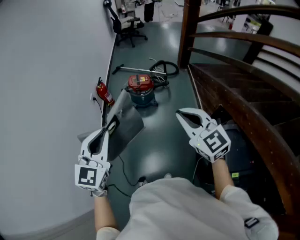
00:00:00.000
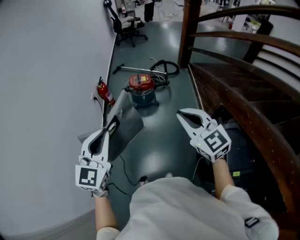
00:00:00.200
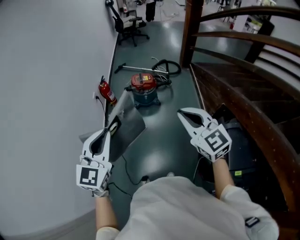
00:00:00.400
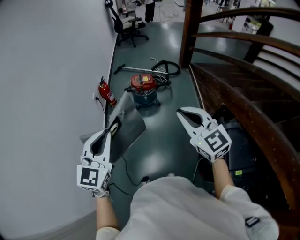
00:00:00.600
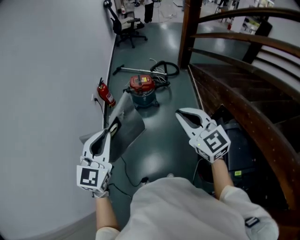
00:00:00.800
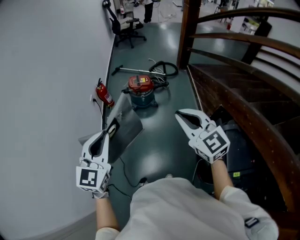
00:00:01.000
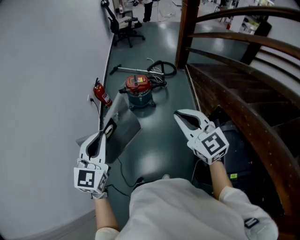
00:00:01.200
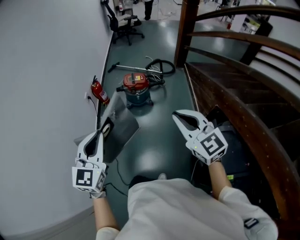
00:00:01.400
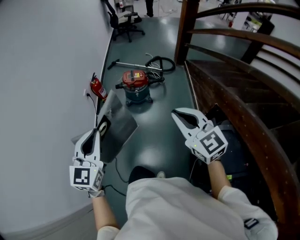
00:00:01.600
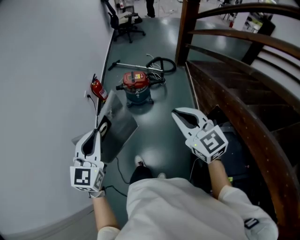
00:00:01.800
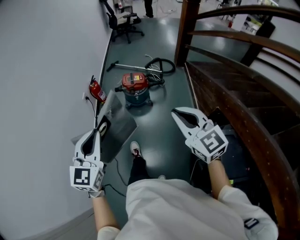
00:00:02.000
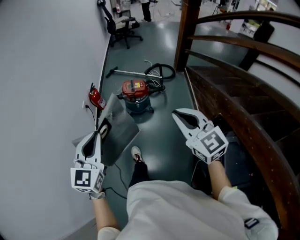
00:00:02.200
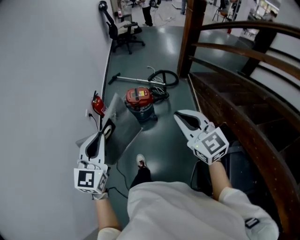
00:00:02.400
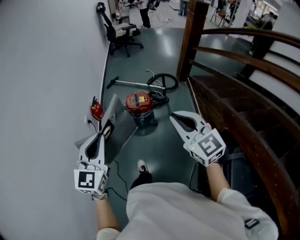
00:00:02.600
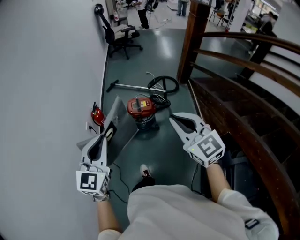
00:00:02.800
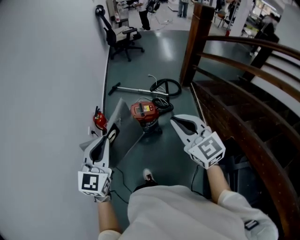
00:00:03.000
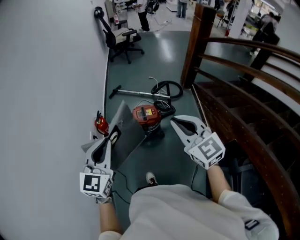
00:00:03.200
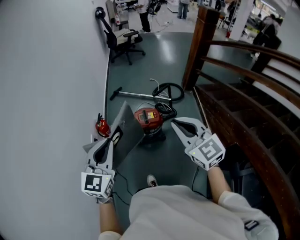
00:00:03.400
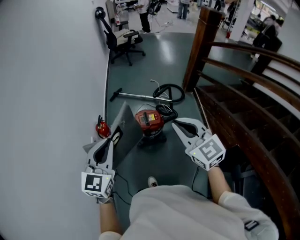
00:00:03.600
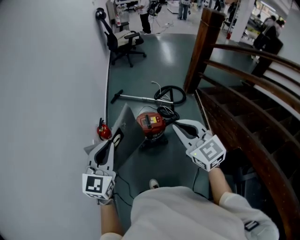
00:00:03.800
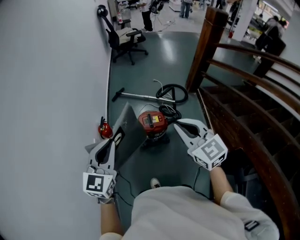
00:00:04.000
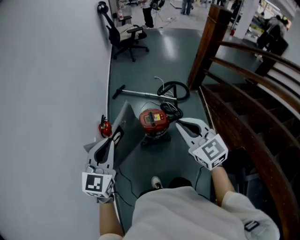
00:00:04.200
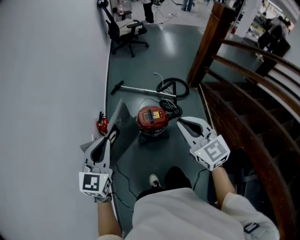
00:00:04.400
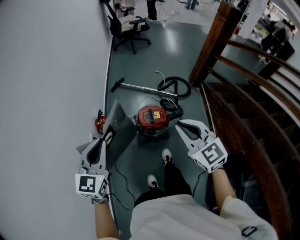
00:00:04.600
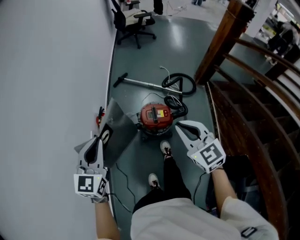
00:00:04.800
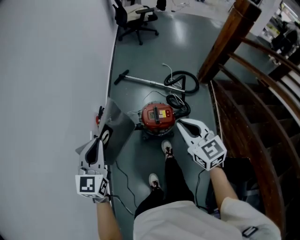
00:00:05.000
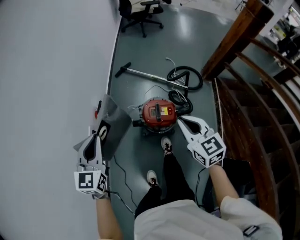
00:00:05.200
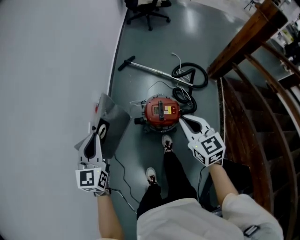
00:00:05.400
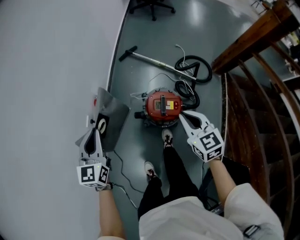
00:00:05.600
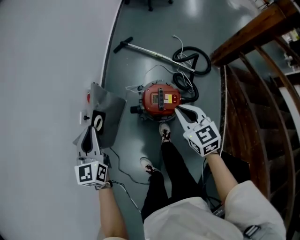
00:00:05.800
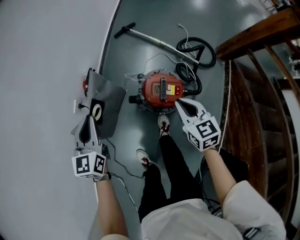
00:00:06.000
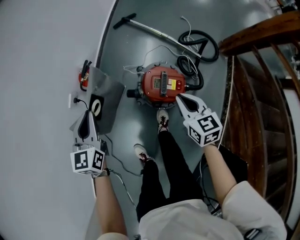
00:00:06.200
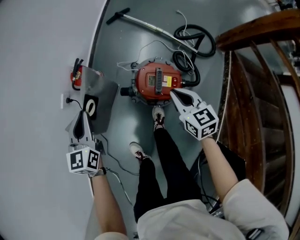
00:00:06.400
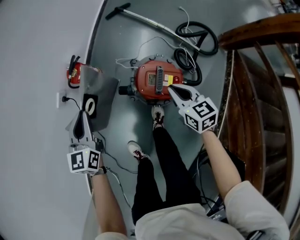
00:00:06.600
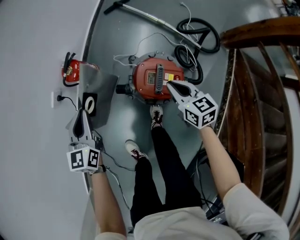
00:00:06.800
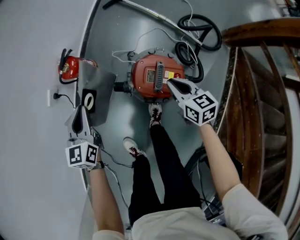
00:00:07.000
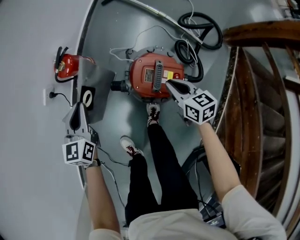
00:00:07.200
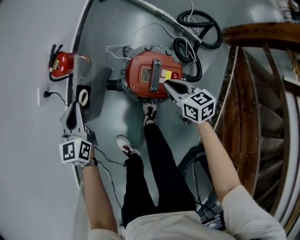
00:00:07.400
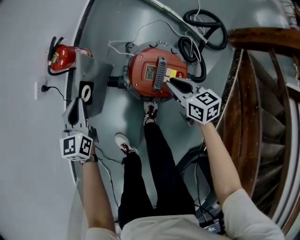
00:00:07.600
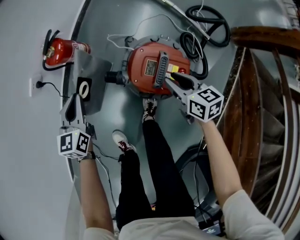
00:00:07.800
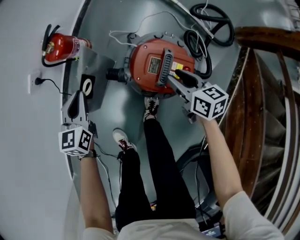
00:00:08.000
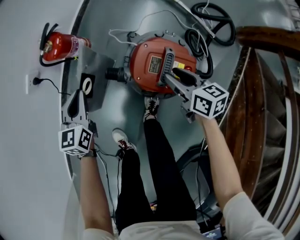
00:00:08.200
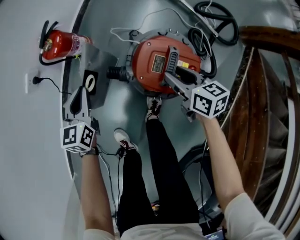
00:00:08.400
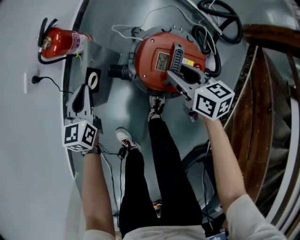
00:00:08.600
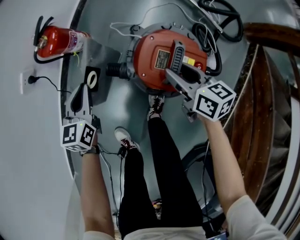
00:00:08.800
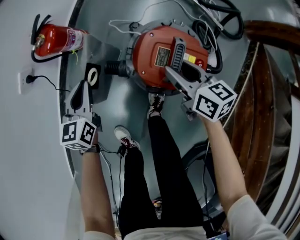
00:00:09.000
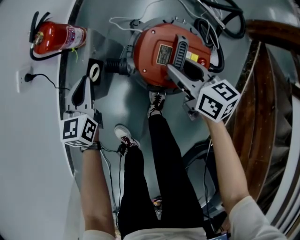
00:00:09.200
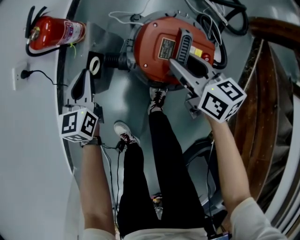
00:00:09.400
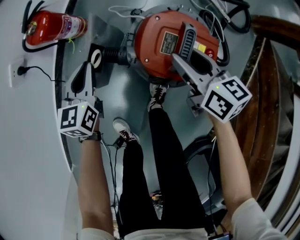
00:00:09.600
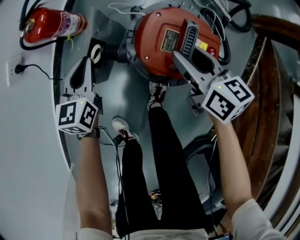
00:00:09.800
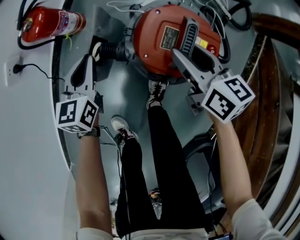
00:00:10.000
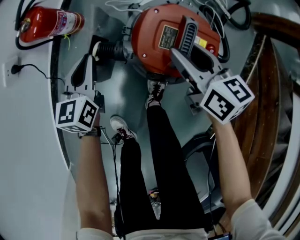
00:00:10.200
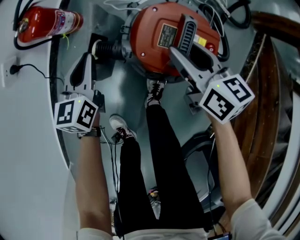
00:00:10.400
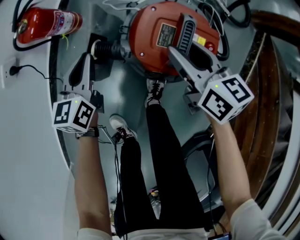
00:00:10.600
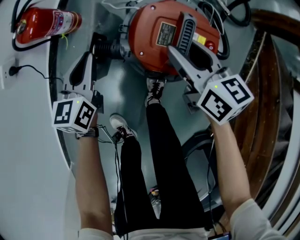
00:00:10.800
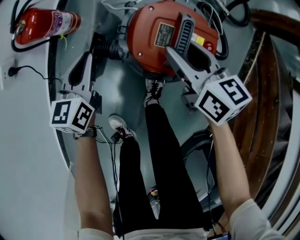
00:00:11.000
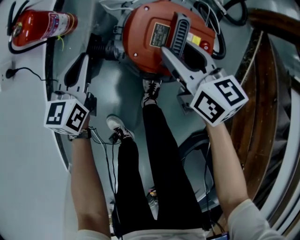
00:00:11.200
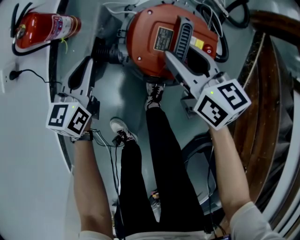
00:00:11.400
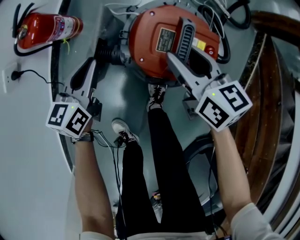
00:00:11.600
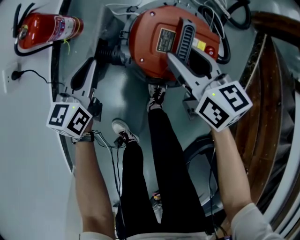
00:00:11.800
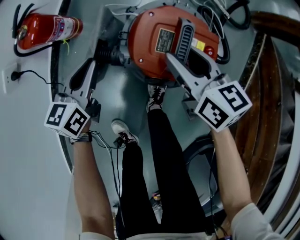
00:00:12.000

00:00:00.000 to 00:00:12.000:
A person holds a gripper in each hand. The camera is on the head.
00:00:00.000 to 00:00:01.600: The grippers make only small movements.
00:00:01.600 to 00:00:03.000: Both grippers move forward, about 35 cm.
00:00:03.000 to 00:00:04.400: The left gripper shifts approximately 20 cm forward and to the left. Meanwhile the right gripper travels forward by about 15 cm.
00:00:04.400 to 00:00:06.000: Both grippers move downward and forward, about 40 cm. The right gripper swivels some 30 degrees. Meanwhile the left gripper swivels approximately 30 degrees.
00:00:06.000 to 00:00:07.600: Both grippers travel together downward, approximately 25 cm. The right gripper turns by roughly 30 degrees.
00:00:07.600 to 00:00:09.000: The left gripper goes roughly 10 cm downward; the right gripper ends up some 5 cm from where it was, and opens its fingers.
00:00:09.000 to 00:00:10.400: The left gripper ends up roughly 5 cm from where it was.
00:00:10.400 to 00:00:12.000: There are only small adjustments of the grippers.

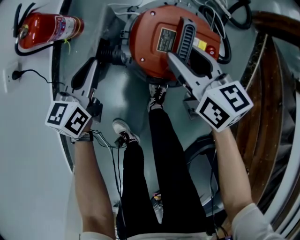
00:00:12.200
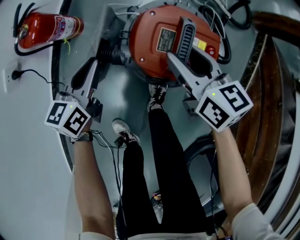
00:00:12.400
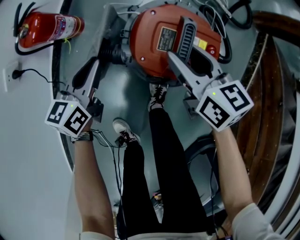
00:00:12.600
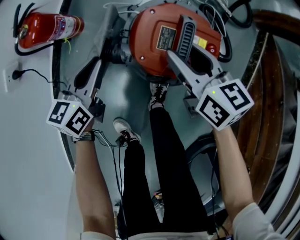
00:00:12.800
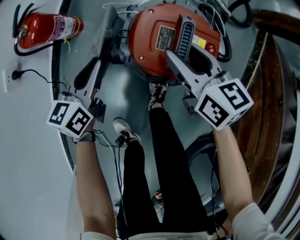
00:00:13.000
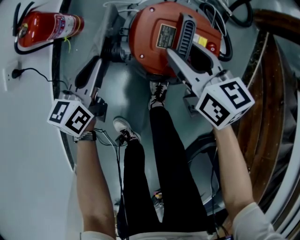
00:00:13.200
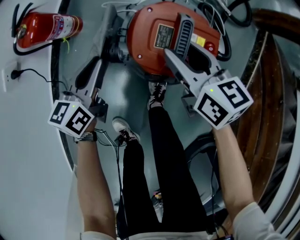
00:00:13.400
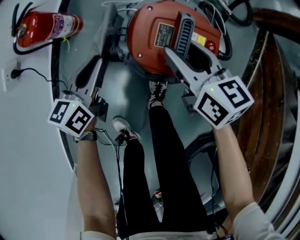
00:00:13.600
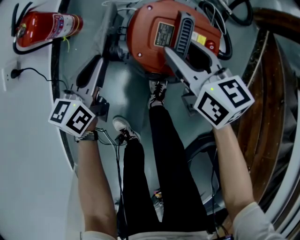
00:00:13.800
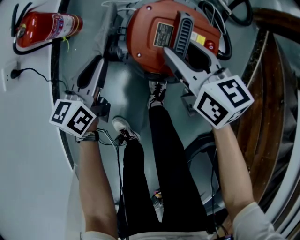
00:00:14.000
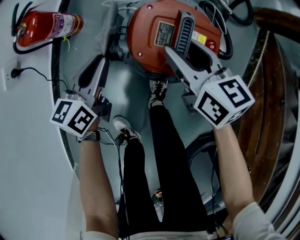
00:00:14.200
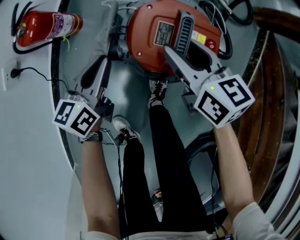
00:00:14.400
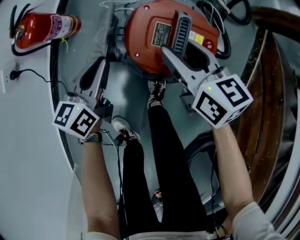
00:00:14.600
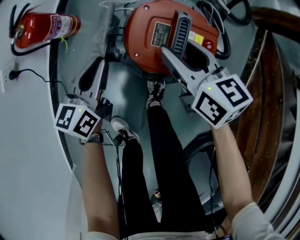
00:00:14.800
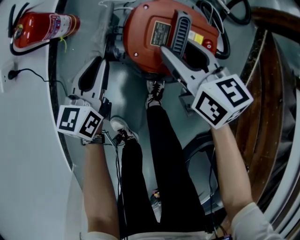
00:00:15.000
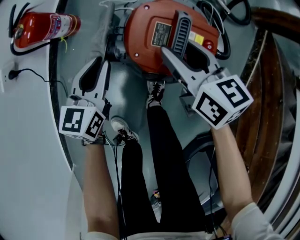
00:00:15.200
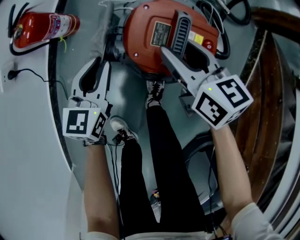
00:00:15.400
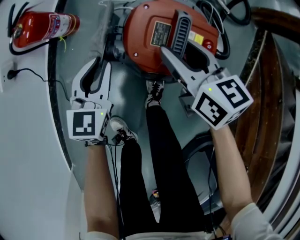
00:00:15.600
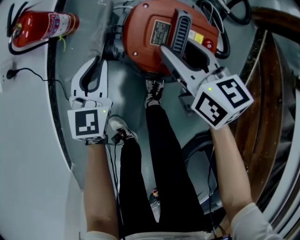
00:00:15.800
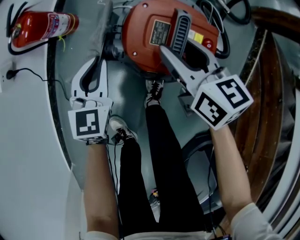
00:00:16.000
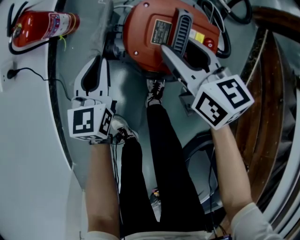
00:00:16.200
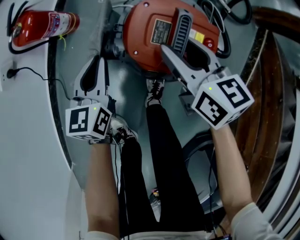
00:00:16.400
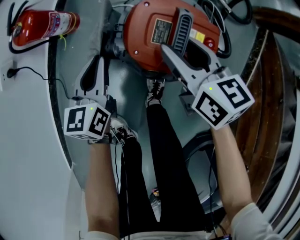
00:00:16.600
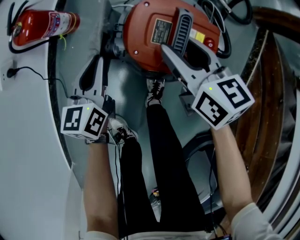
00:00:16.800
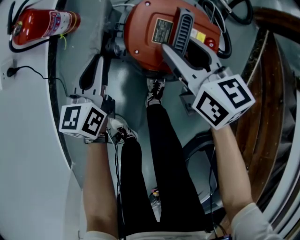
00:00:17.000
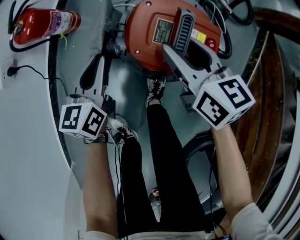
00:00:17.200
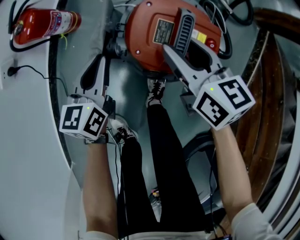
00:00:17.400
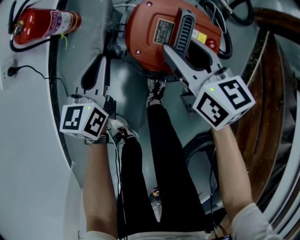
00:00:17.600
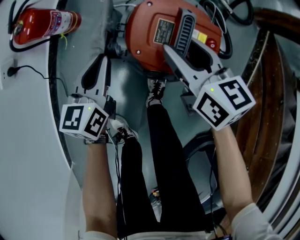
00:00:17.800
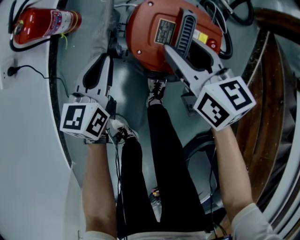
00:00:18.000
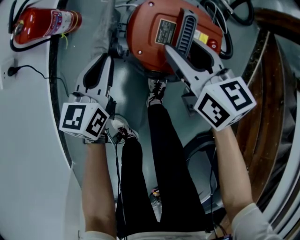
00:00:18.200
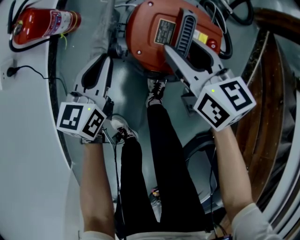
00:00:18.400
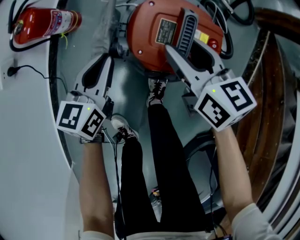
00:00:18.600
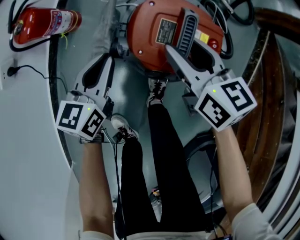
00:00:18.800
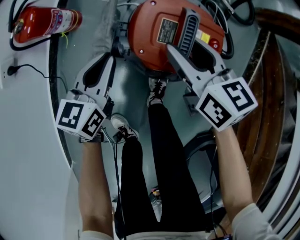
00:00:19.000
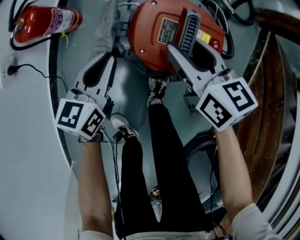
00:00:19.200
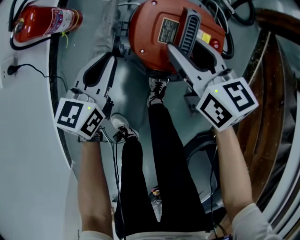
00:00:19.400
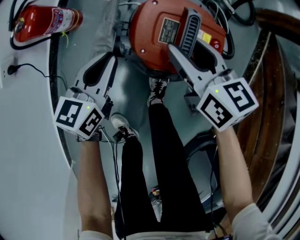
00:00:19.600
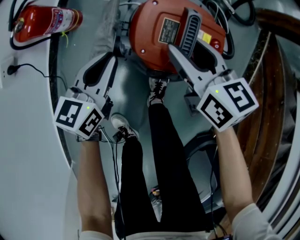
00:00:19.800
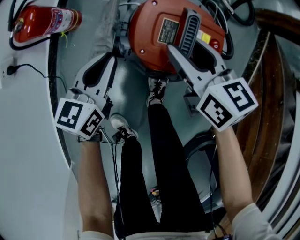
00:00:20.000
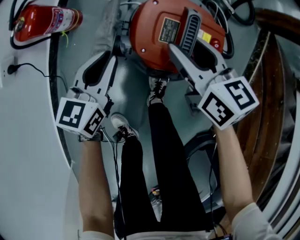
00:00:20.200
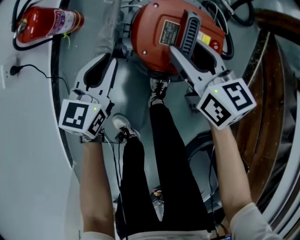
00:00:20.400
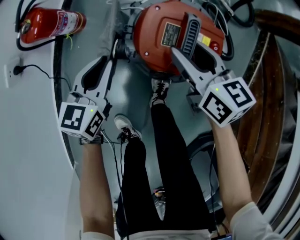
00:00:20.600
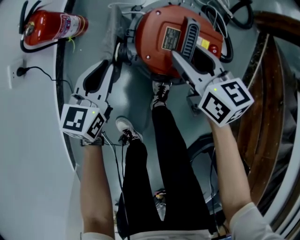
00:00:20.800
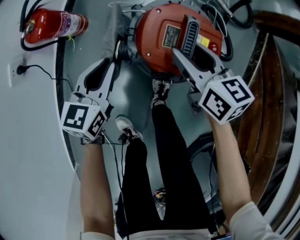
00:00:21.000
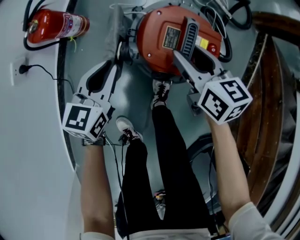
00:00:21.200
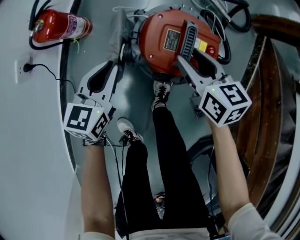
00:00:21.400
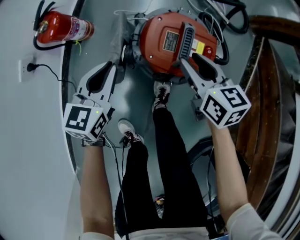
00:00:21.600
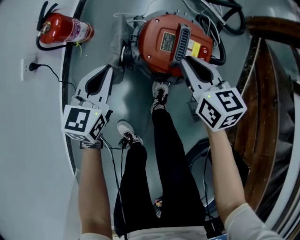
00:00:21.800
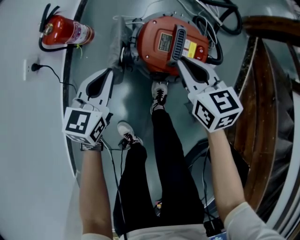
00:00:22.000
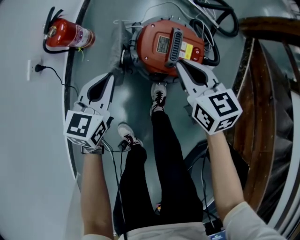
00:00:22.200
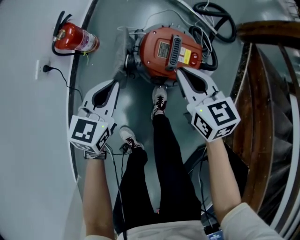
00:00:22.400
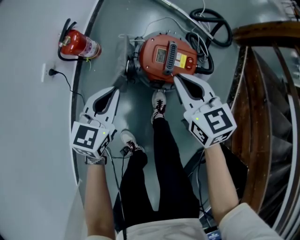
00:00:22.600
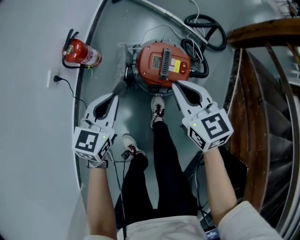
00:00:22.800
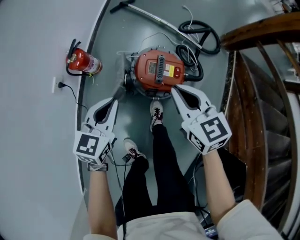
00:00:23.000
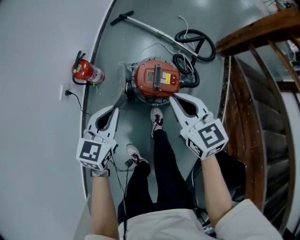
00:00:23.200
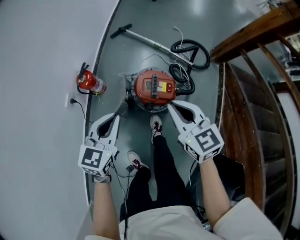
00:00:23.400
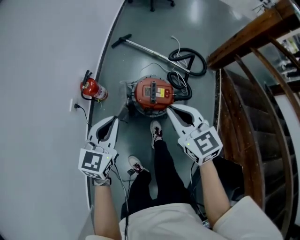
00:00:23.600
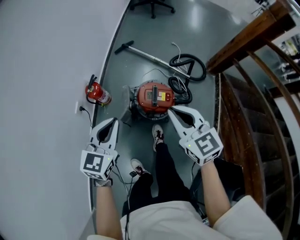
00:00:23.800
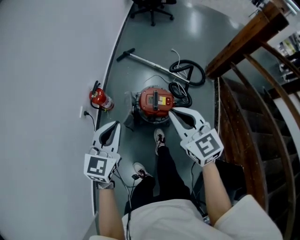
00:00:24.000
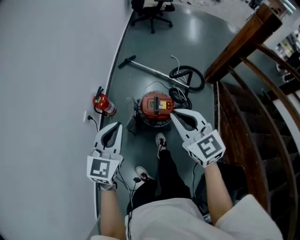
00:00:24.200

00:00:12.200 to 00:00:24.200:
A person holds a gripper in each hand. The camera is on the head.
00:00:12.200 to 00:00:15.200: The grippers stay close to where they were, moving slightly.
00:00:16.600 to 00:00:21.200: The grippers stay close to where they were, moving slightly.
00:00:21.200 to 00:00:22.600: The two grippers go about 15 cm upward. The right gripper closes.
00:00:22.600 to 00:00:24.200: Both grippers move upward, some 35 cm. The left gripper swivels some 20 degrees; the right gripper rotates approximately 20 degrees.
